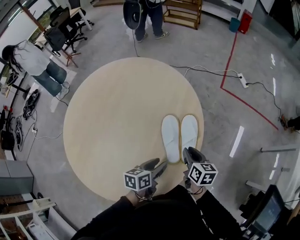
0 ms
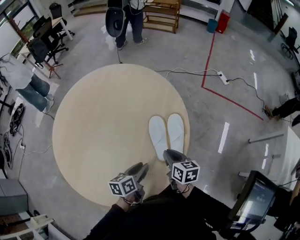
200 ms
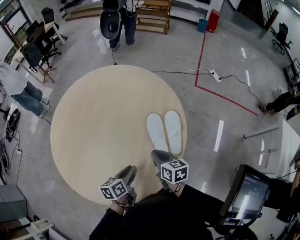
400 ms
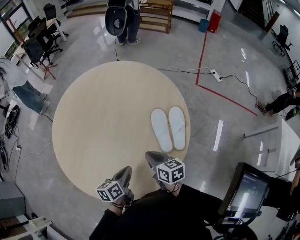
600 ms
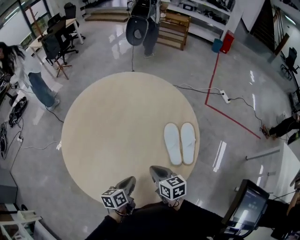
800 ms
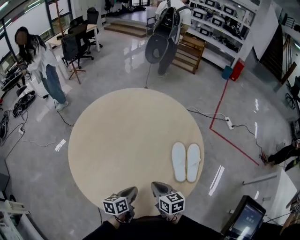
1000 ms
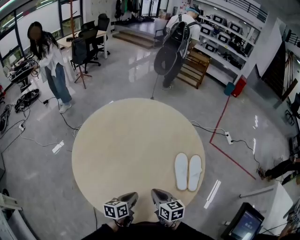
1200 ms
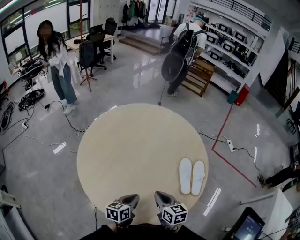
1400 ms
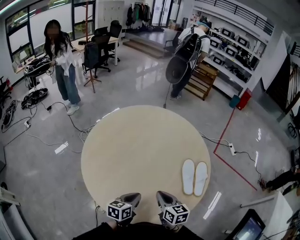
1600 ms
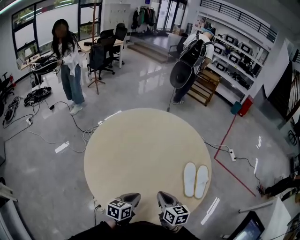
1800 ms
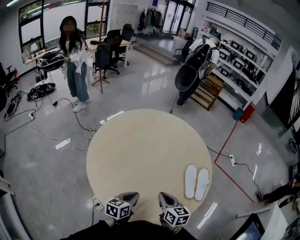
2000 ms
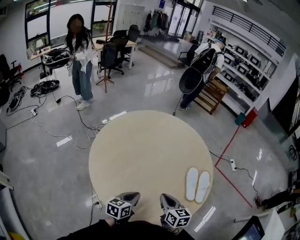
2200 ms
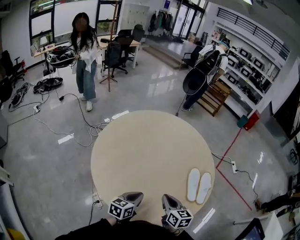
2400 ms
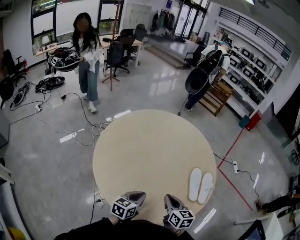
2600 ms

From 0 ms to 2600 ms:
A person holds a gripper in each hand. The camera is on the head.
From 0 ms to 1200 ms: Both grippers move to the left and backward, about 25 cm. The right gripper rotates some 30 degrees, and closes up; the left gripper closes.
From 1200 ms to 2600 ms: Both grippers travel together to the left, roughly 5 cm.

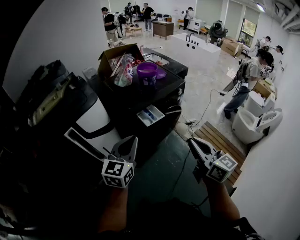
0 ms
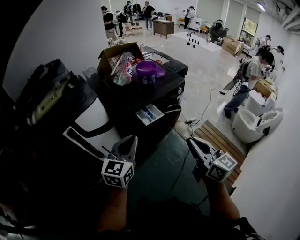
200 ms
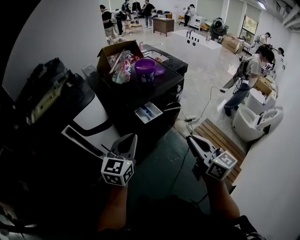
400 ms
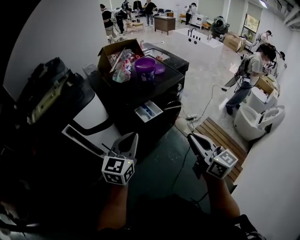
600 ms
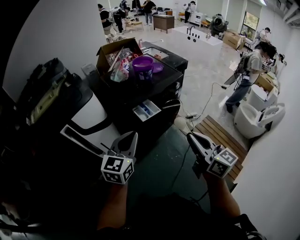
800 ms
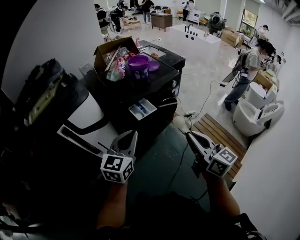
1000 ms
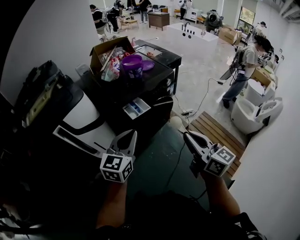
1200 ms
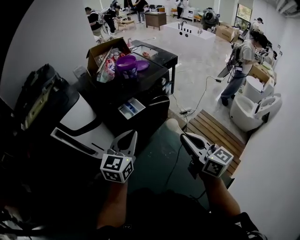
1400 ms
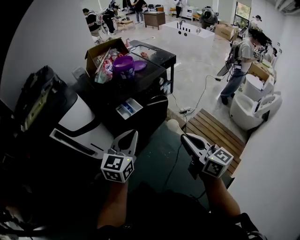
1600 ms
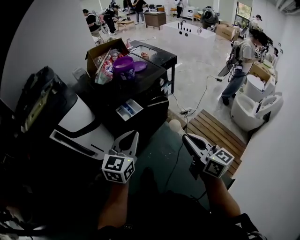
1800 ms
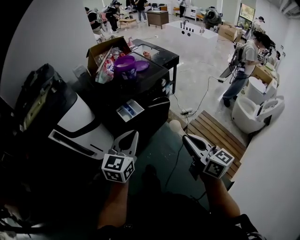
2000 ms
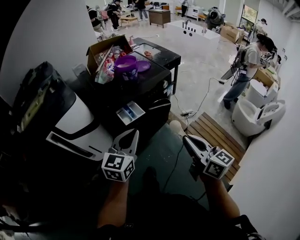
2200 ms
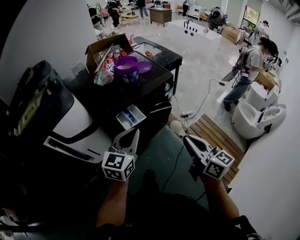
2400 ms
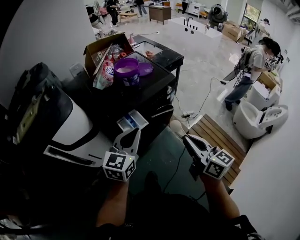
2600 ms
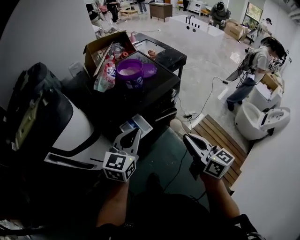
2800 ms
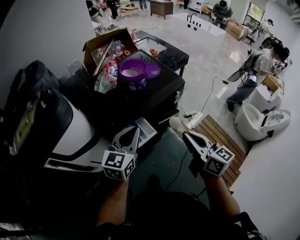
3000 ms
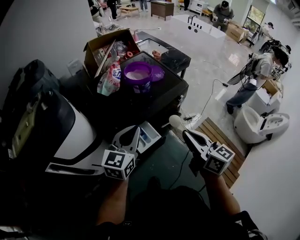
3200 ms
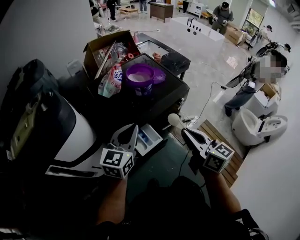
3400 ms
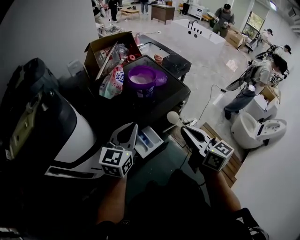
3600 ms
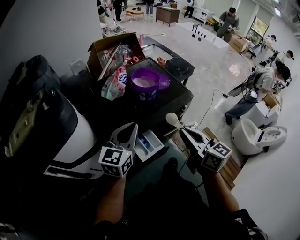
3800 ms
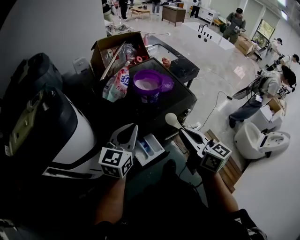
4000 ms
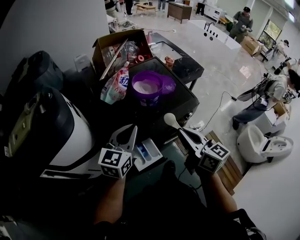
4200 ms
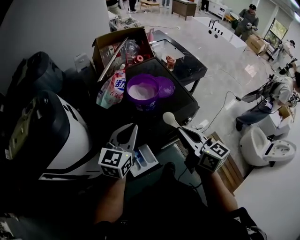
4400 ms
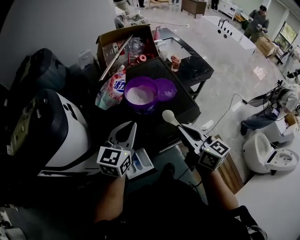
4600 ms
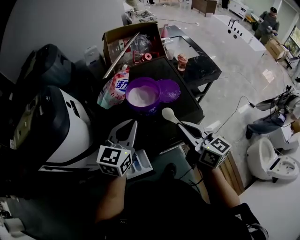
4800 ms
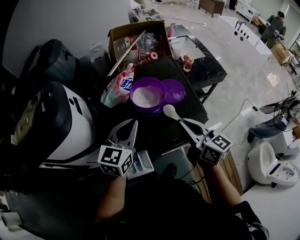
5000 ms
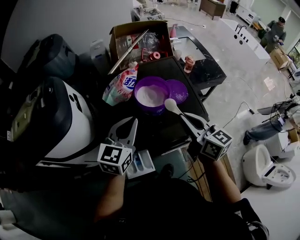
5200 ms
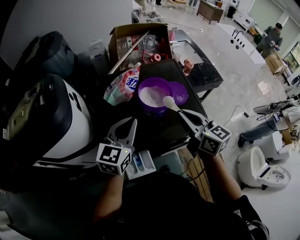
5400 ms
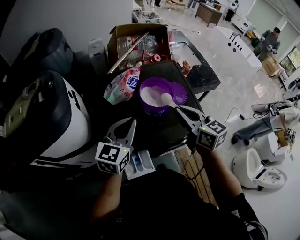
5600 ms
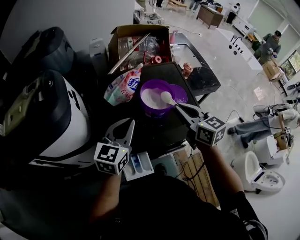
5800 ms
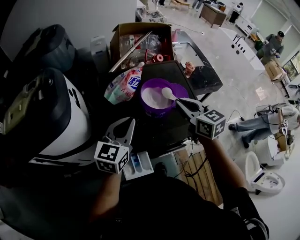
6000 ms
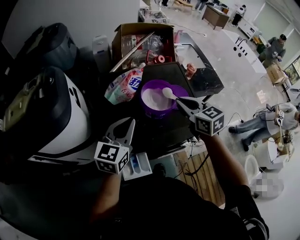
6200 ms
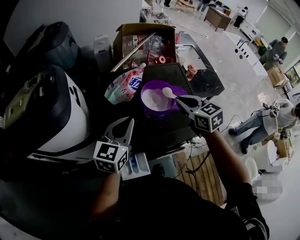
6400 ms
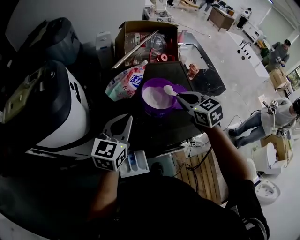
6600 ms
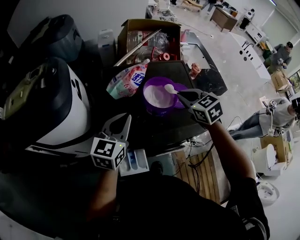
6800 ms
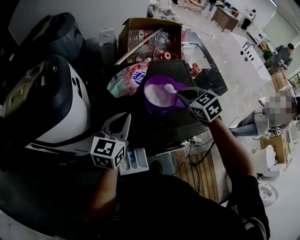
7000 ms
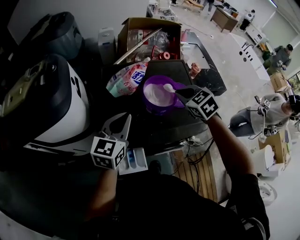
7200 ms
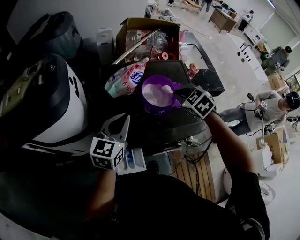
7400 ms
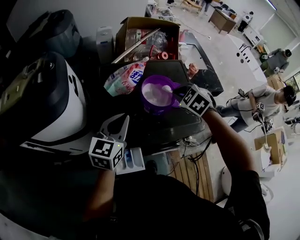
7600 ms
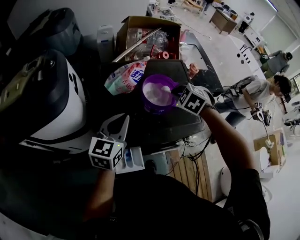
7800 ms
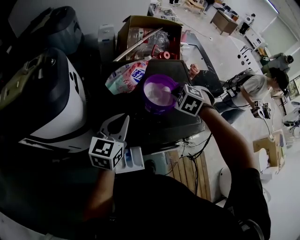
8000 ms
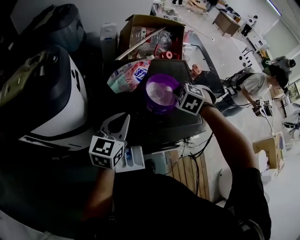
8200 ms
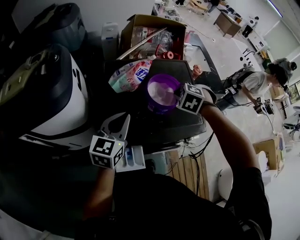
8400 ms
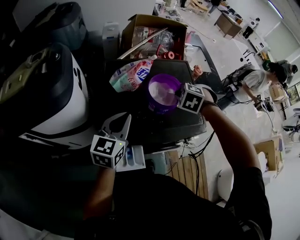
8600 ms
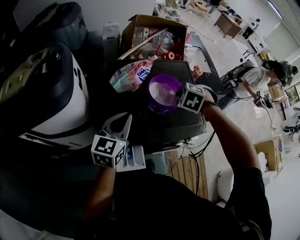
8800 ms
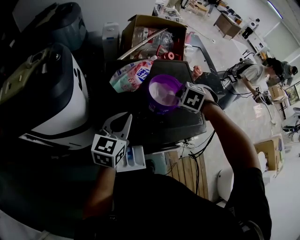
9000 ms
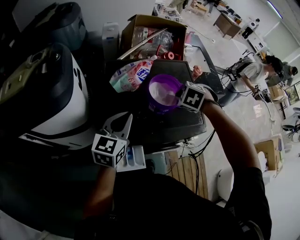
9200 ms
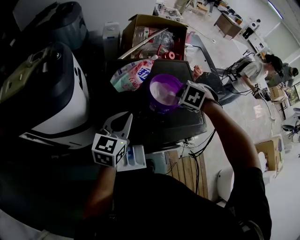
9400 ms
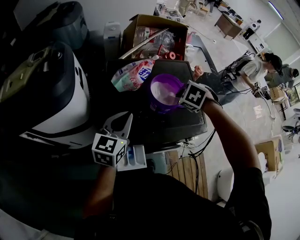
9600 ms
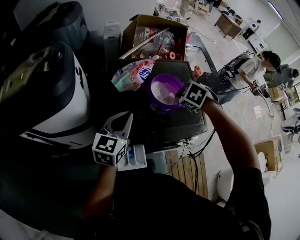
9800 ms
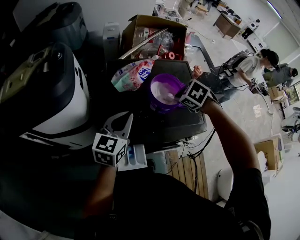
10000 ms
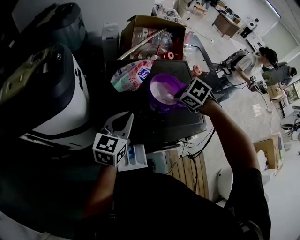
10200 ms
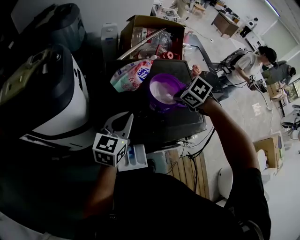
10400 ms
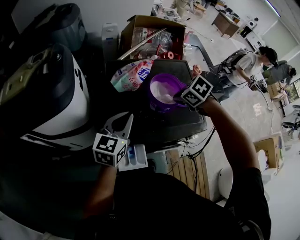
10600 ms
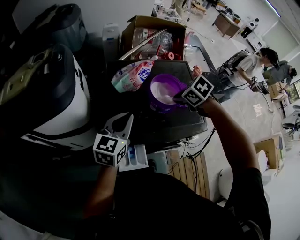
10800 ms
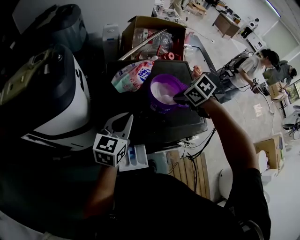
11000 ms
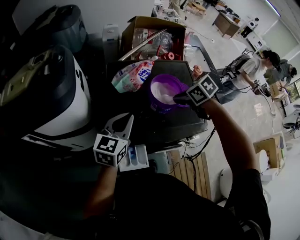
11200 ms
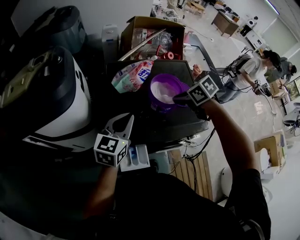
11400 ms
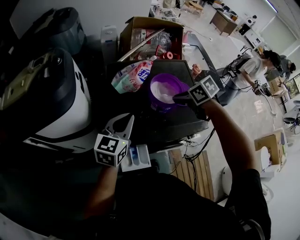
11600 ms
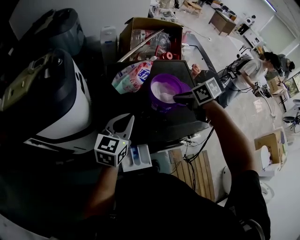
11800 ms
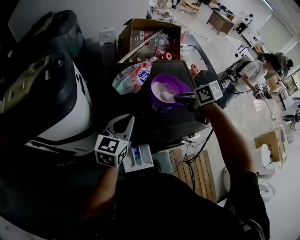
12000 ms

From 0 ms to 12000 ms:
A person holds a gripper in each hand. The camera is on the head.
From 0 ms to 1600 ms: Both grippers travel together to the right, approximately 15 cm.
From 1600 ms to 3000 ms: The grippers both shift forward by roughly 30 cm.
From 3000 ms to 4400 ms: The grippers both shift forward by some 20 cm.
From 4400 ms to 6000 ms: The right gripper shifts roughly 20 cm forward, and changes its angle by some 30 degrees, while the left gripper heads forward, covering about 5 cm.
From 6000 ms to 7600 ms: The right gripper heads downward and forward, covering about 10 cm, and tilts its fingers roughly 40 degrees downward.
From 7600 ms to 9000 ms: The right gripper swivels some 20 degrees.
From 9000 ms to 10400 ms: The right gripper rotates roughly 30 degrees.
From 10400 ms to 12000 ms: The right gripper rotates approximately 50 degrees.

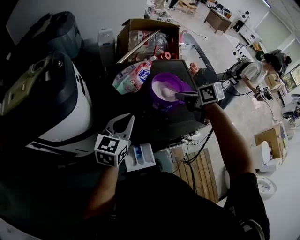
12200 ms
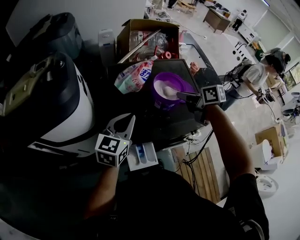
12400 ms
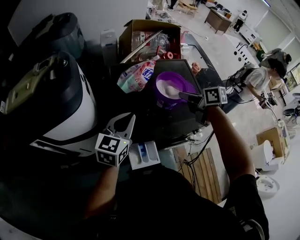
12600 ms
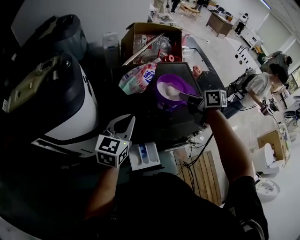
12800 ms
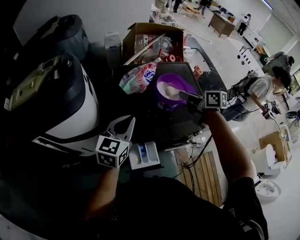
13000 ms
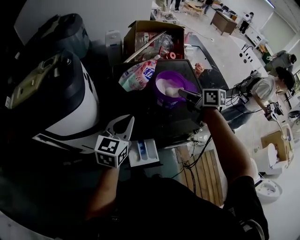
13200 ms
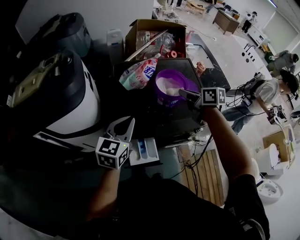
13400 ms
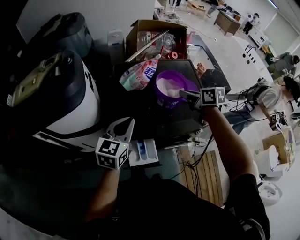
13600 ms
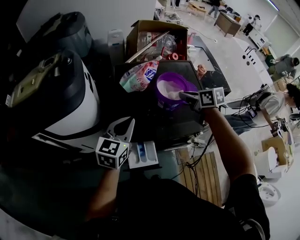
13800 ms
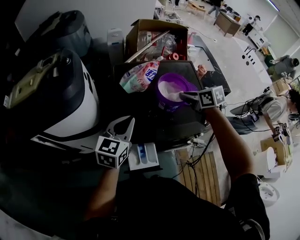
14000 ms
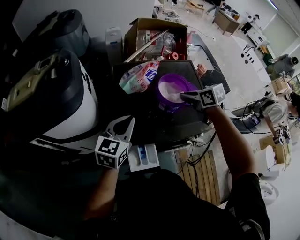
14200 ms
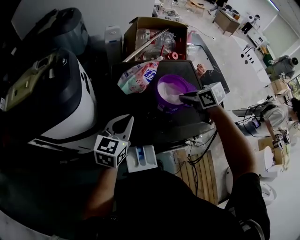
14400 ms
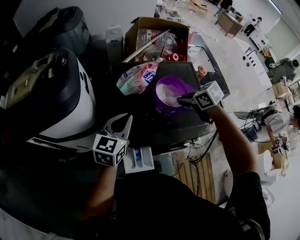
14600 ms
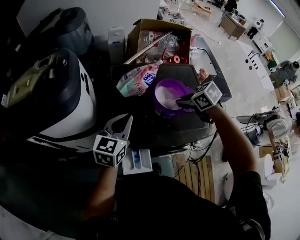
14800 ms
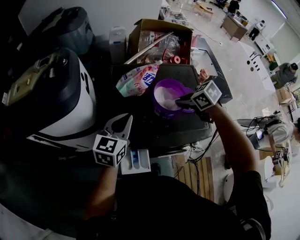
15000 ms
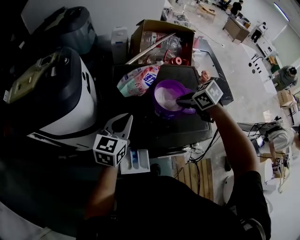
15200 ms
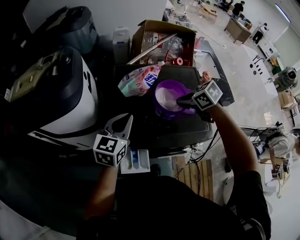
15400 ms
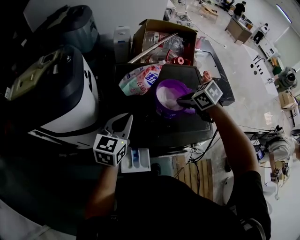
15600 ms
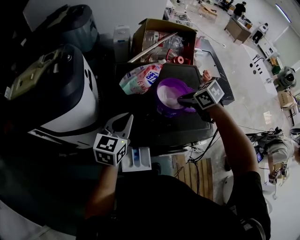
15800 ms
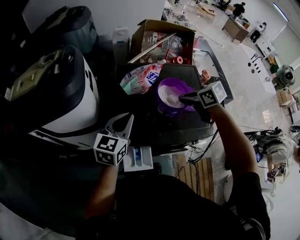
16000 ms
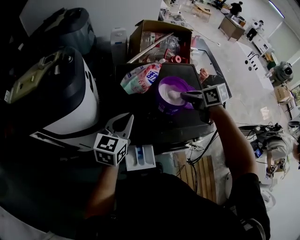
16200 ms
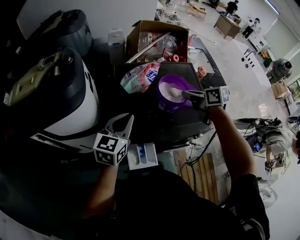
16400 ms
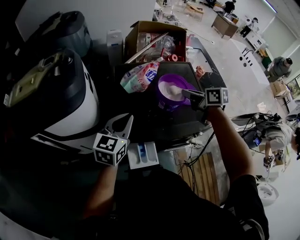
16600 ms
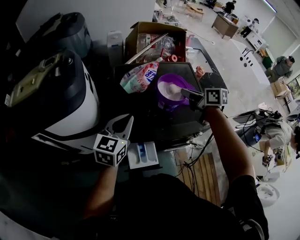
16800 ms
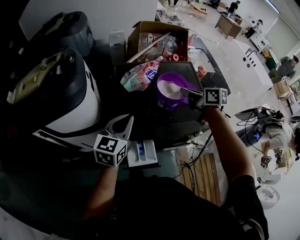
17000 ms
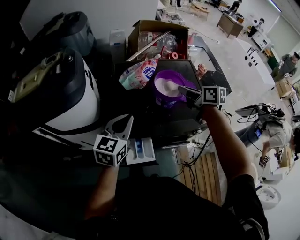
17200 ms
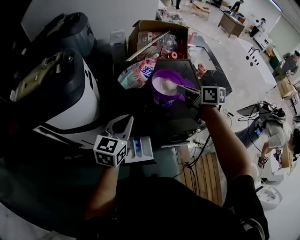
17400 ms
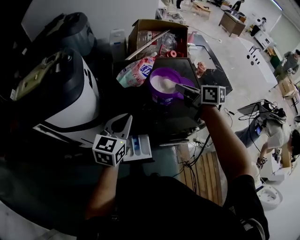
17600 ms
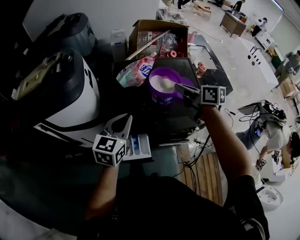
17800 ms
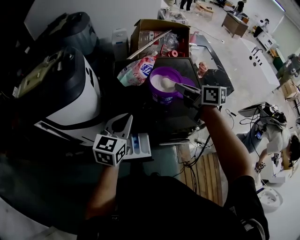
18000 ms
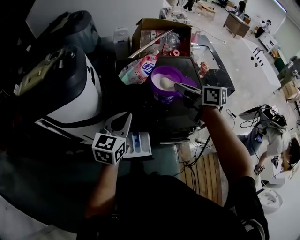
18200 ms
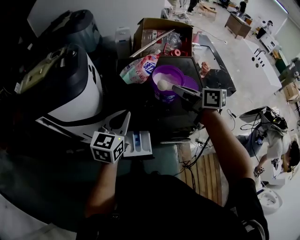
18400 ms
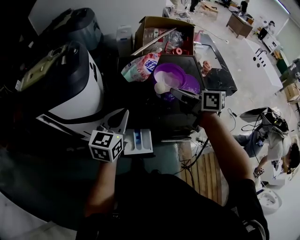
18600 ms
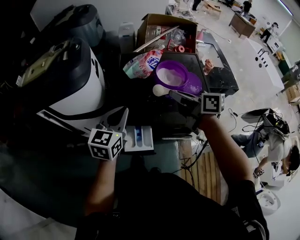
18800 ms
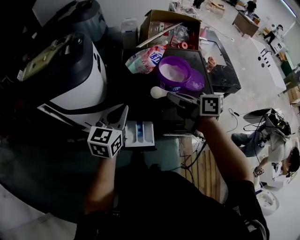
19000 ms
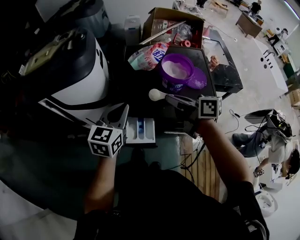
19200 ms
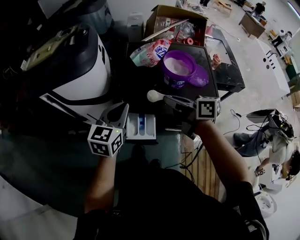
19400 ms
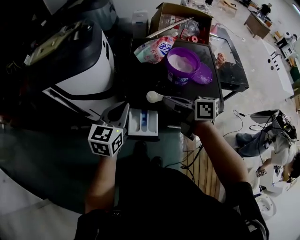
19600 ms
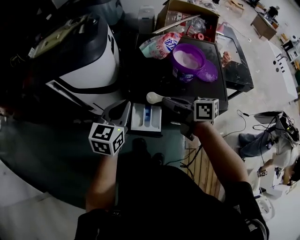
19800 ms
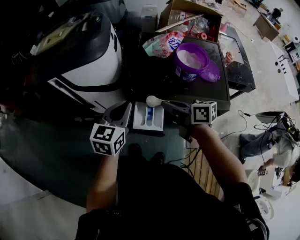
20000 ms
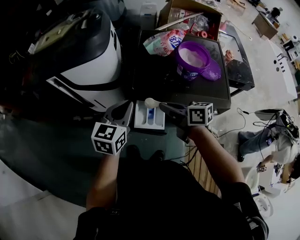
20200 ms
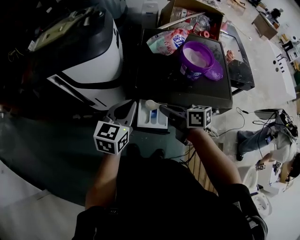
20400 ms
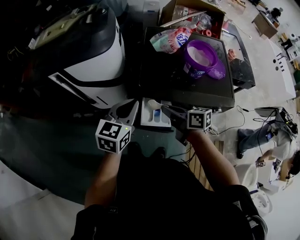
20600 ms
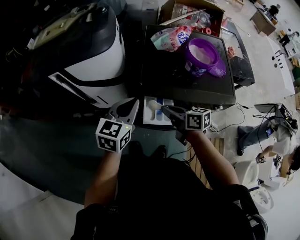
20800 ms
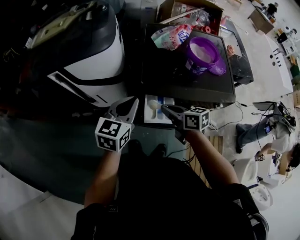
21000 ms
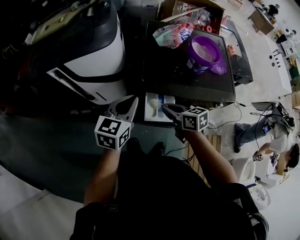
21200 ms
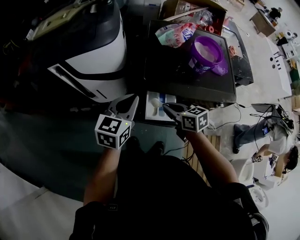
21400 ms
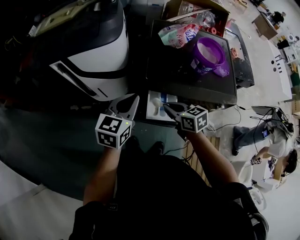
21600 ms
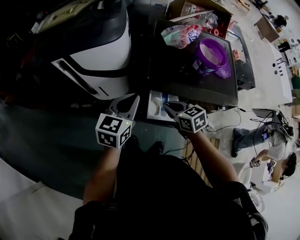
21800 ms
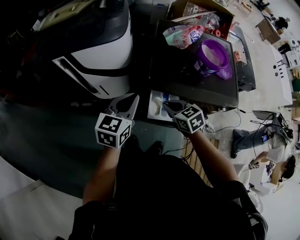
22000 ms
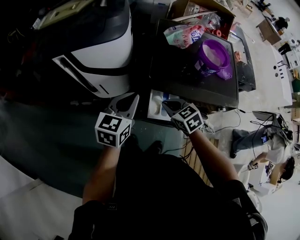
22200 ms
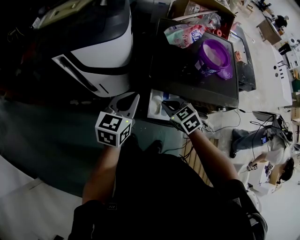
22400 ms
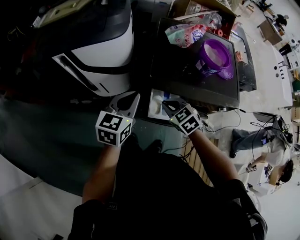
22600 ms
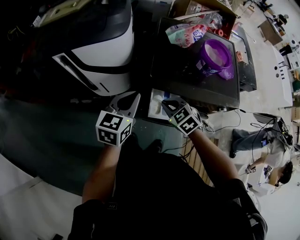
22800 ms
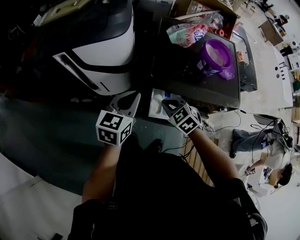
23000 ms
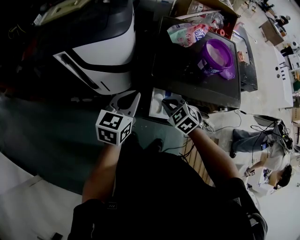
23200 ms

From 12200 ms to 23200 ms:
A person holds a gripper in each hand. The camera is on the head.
From 12200 ms to 13800 ms: The grippers make only small movements.
From 13800 ms to 15400 ms: The left gripper shifts by approximately 5 cm, while the right gripper rotates about 40 degrees.
From 15400 ms to 17000 ms: The right gripper shifts by roughly 5 cm, and changes its angle by about 50 degrees; the left gripper shifts by some 5 cm.
From 17000 ms to 18400 ms: The right gripper is displaced backward by about 5 cm.
From 18400 ms to 20000 ms: The right gripper moves to the left, downward and backward, approximately 20 cm. Meanwhile the left gripper travels to the left and backward by about 10 cm.
From 20000 ms to 21600 ms: The left gripper shifts some 5 cm to the left; the right gripper is displaced downward and to the left by roughly 10 cm, and turns by about 30 degrees.
From 21600 ms to 23200 ms: The right gripper twists about 40 degrees counterclockwise, seen from behind.
